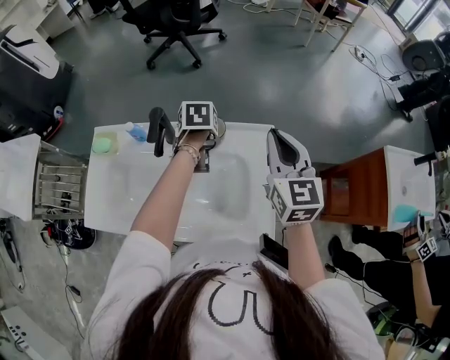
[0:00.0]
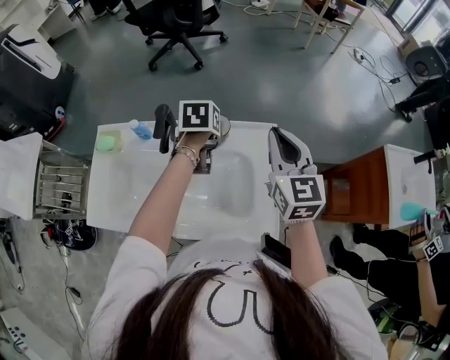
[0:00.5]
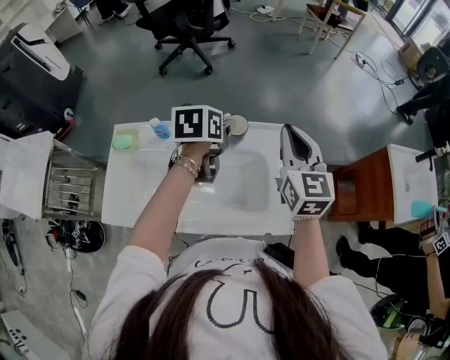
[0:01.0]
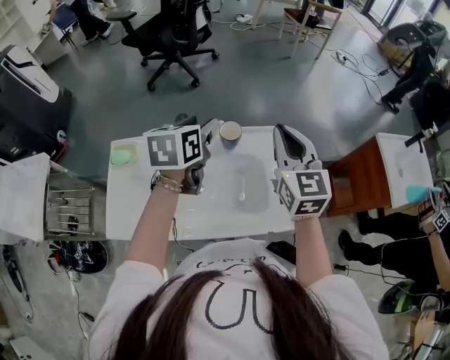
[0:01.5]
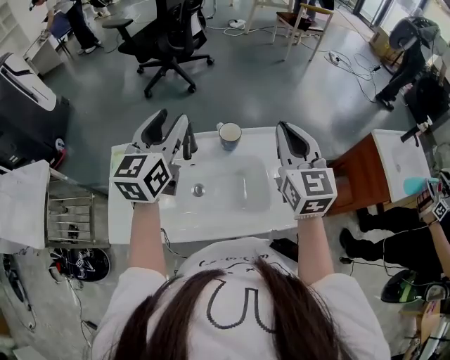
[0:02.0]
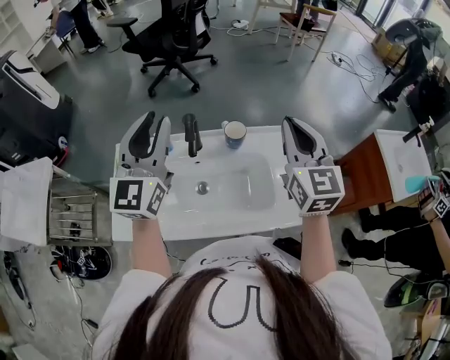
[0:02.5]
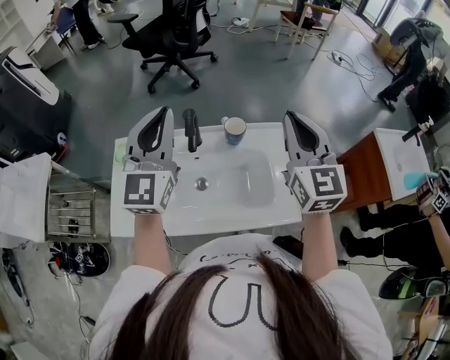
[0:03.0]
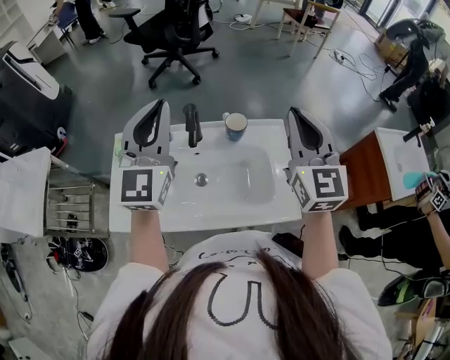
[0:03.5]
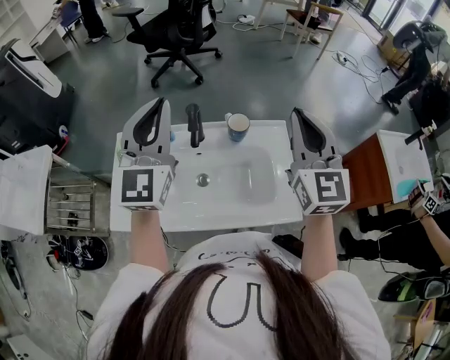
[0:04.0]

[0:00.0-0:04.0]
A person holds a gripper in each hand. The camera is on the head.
0:00.0 to 0:02.0: The right gripper shifts approximately 10 cm upward and backward, while the left gripper travels upward by approximately 30 cm, and points its fingers approximately 60 degrees further upward.
0:02.0 to 0:04.0: The right gripper shifts by about 5 cm; the left gripper travels upward and backward by about 10 cm, changes its angle by approximately 30 degrees, and closes up.

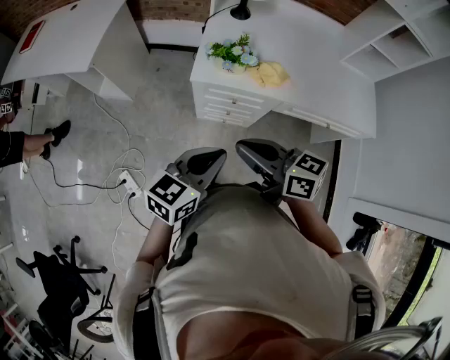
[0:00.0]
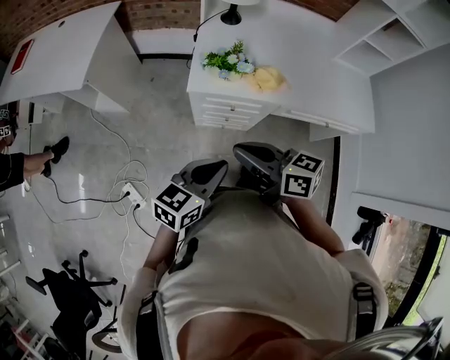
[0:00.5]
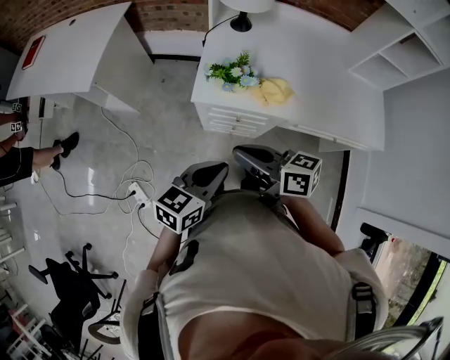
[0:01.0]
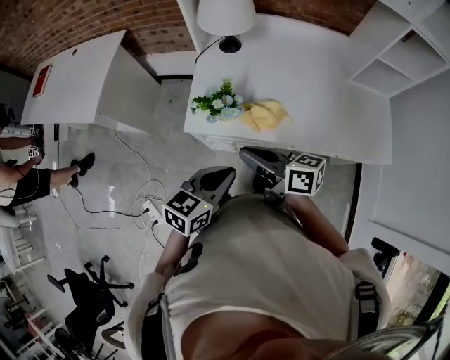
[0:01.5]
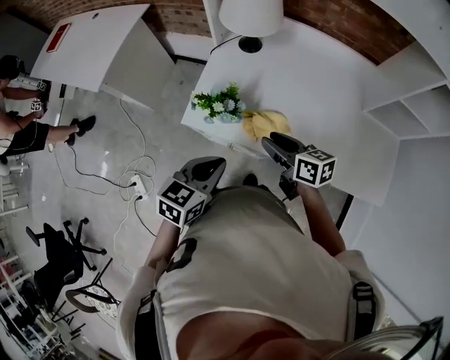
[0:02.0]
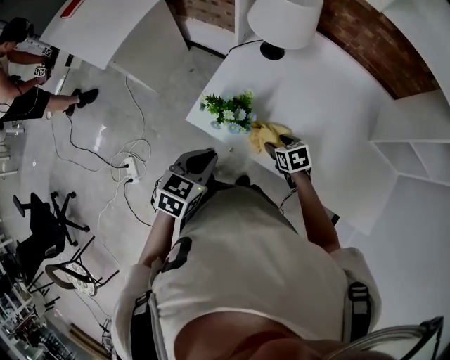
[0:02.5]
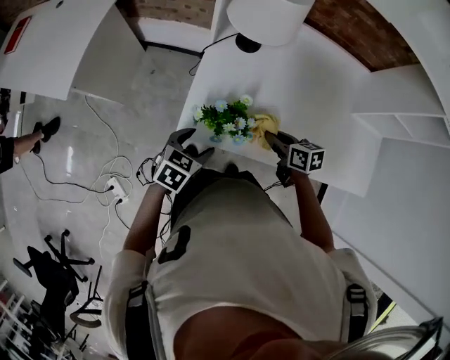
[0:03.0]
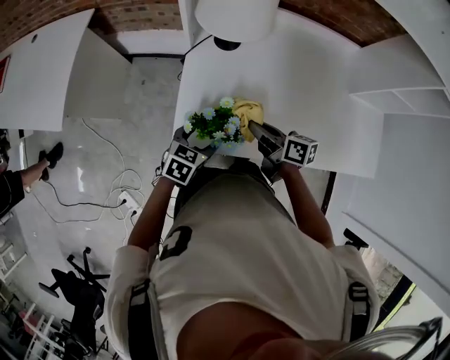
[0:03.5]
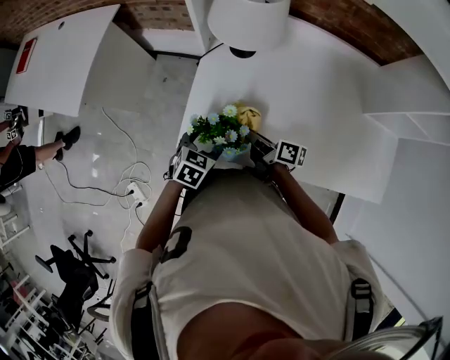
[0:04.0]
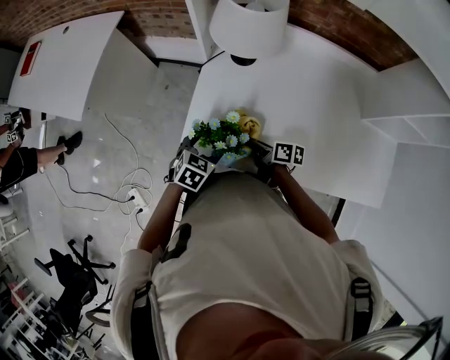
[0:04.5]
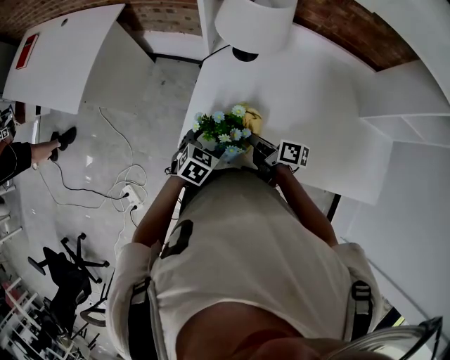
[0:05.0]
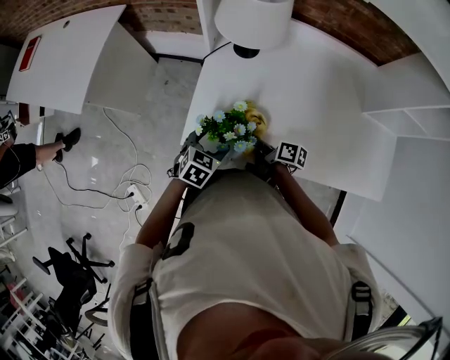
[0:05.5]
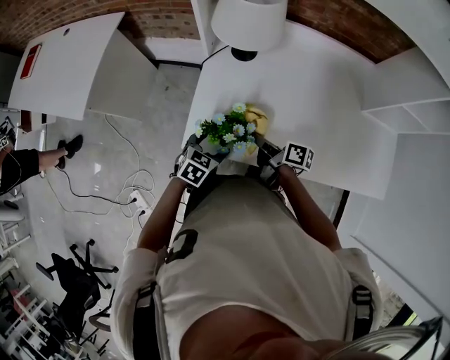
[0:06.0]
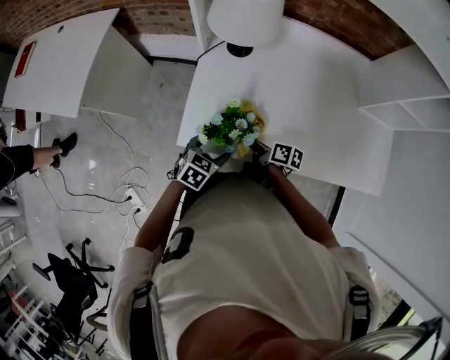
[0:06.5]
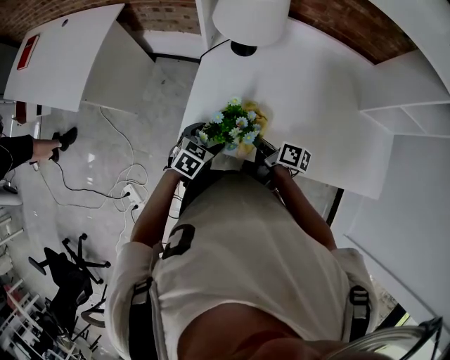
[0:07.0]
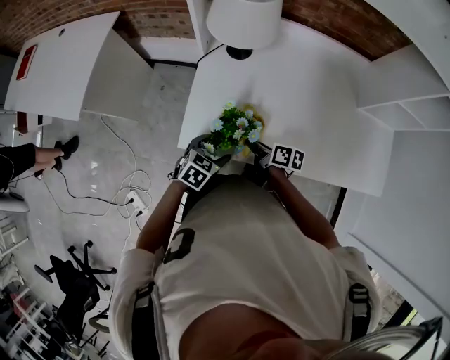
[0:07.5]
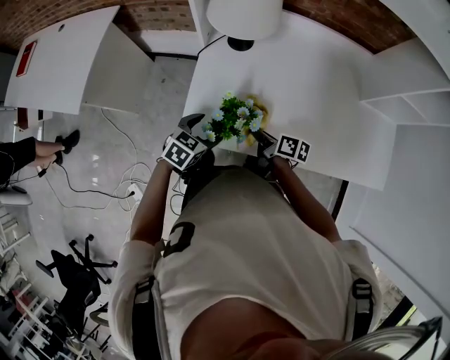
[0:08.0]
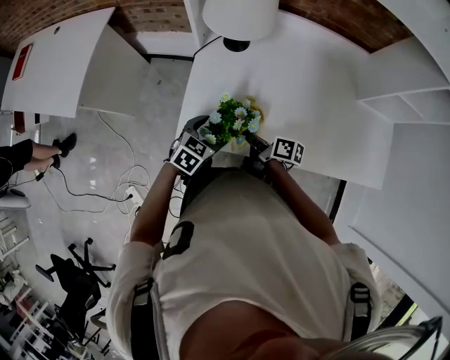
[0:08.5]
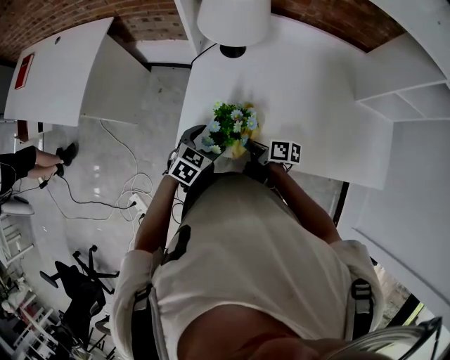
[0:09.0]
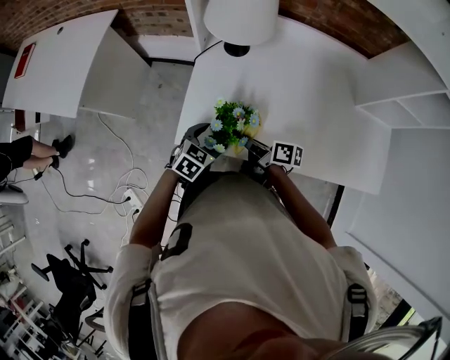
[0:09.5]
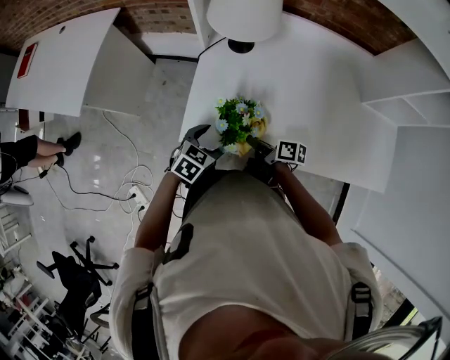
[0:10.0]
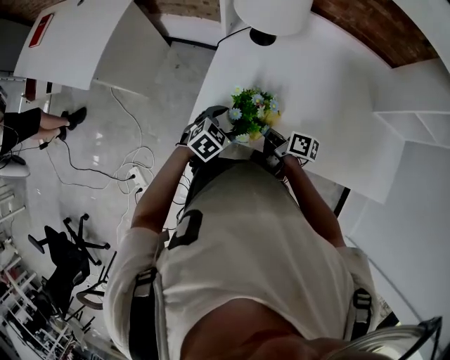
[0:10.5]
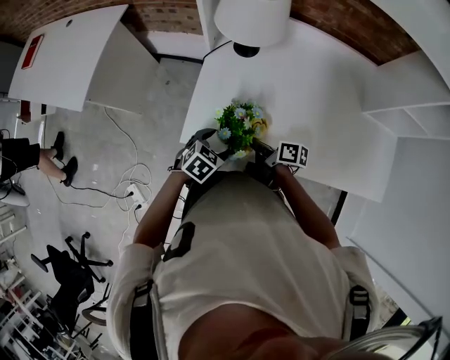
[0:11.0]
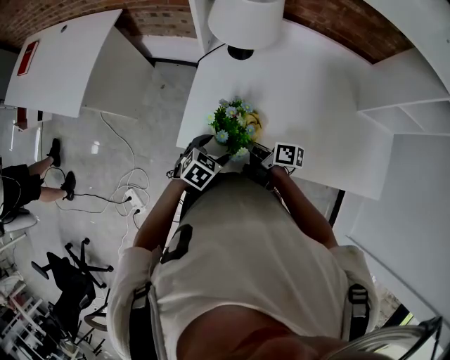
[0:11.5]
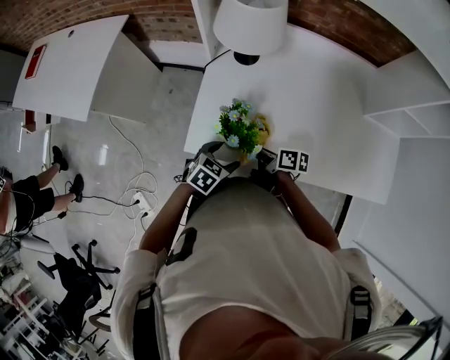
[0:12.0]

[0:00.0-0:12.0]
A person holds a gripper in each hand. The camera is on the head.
0:00.0 to 0:02.0: The right gripper goes about 35 cm forward, to the right and downward, and opens; the left gripper travels forward and to the right by approximately 25 cm, and rotates approximately 20 degrees.
0:02.0 to 0:04.0: The left gripper moves downward and forward, roughly 25 cm, changes its angle by approximately 20 degrees, and opens its fingers, while the right gripper moves up and down over some 15 cm, changing direction 2 times, turns by roughly 40 degrees, and opens, then closes again.
0:04.0 to 0:06.0: The right gripper goes up and down, approximately 5 cm each way, reversing 3 times.
0:06.0 to 0:08.0: There are only small adjustments of the grippers.
0:08.0 to 0:10.0: The grippers move only a little.

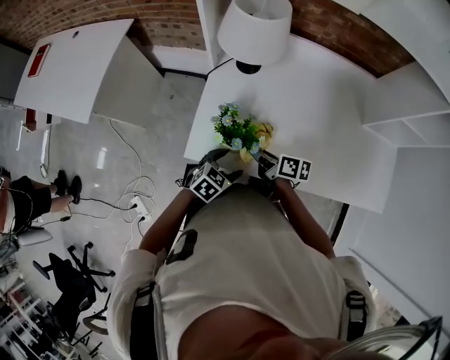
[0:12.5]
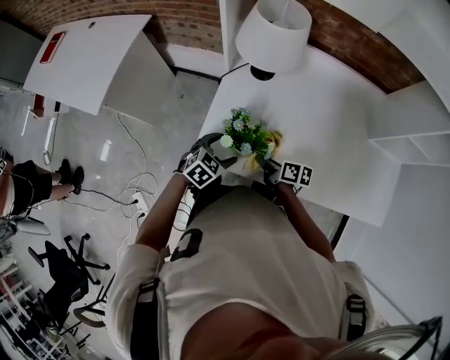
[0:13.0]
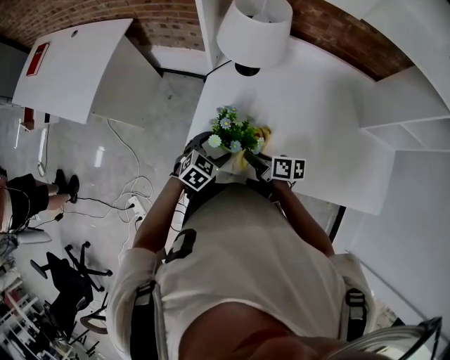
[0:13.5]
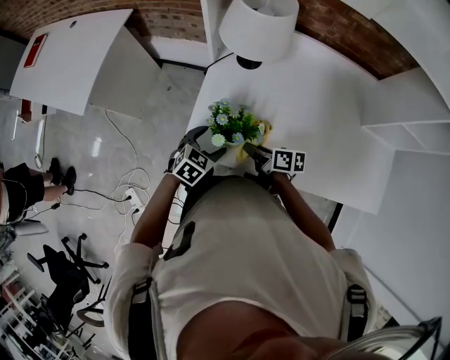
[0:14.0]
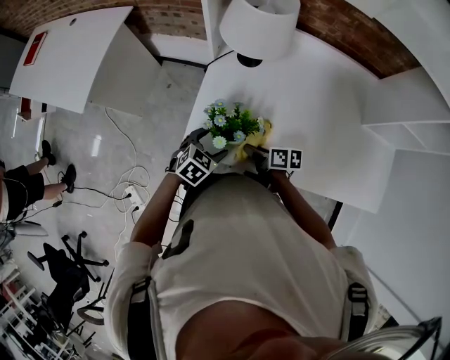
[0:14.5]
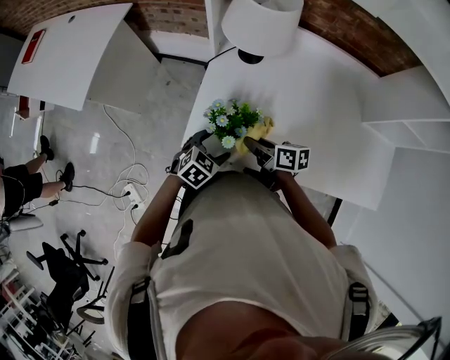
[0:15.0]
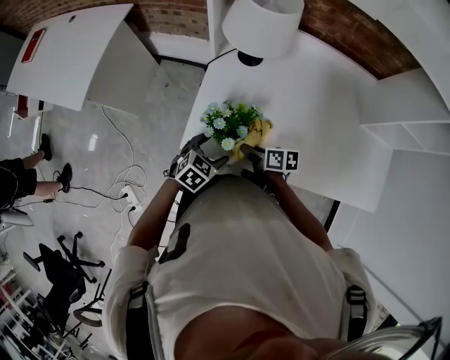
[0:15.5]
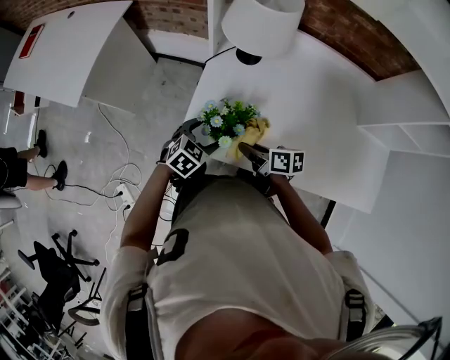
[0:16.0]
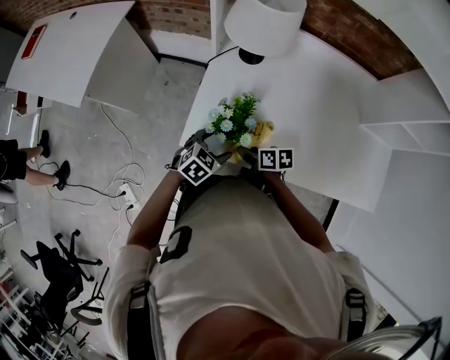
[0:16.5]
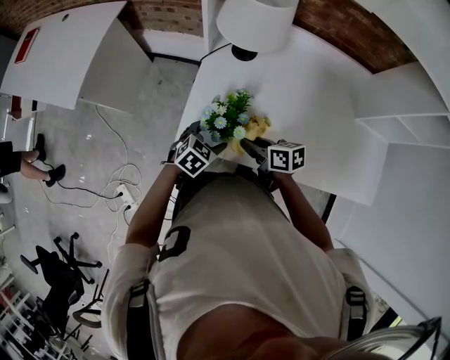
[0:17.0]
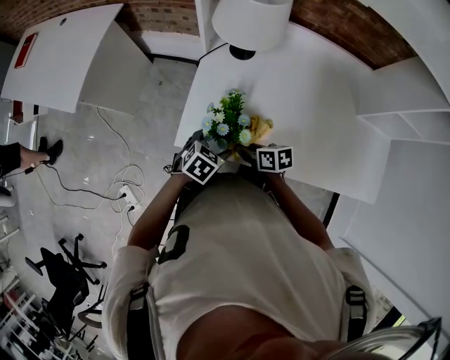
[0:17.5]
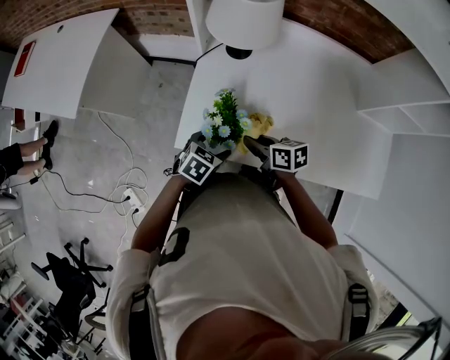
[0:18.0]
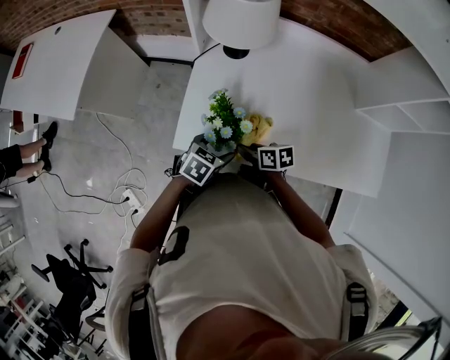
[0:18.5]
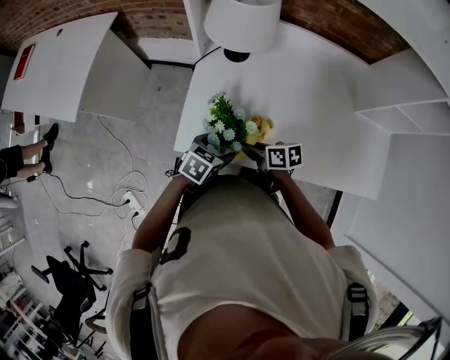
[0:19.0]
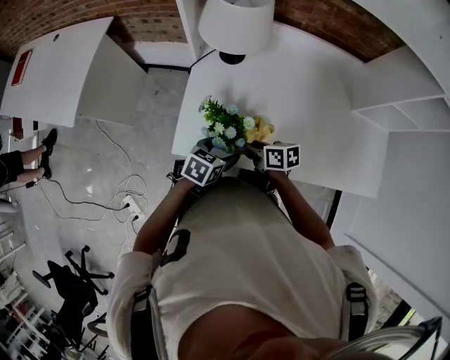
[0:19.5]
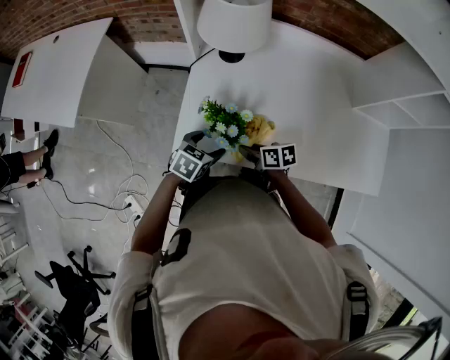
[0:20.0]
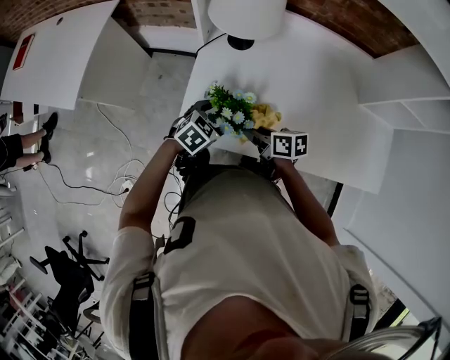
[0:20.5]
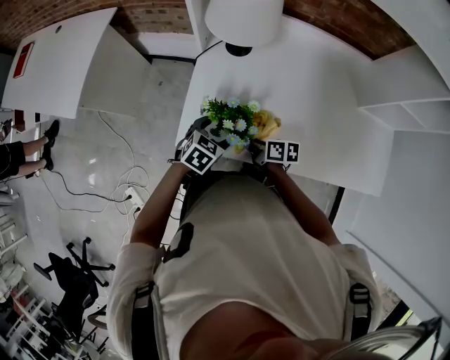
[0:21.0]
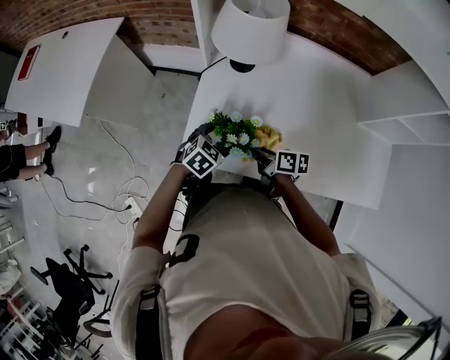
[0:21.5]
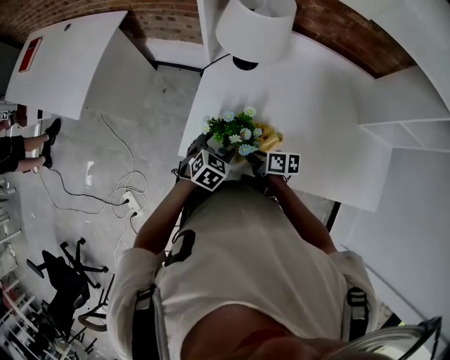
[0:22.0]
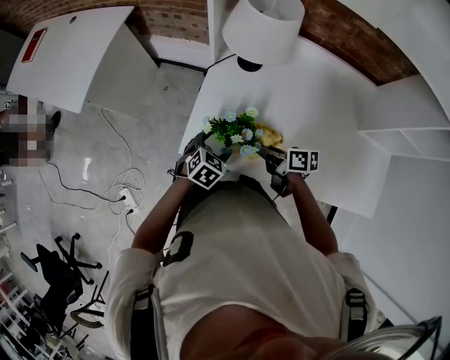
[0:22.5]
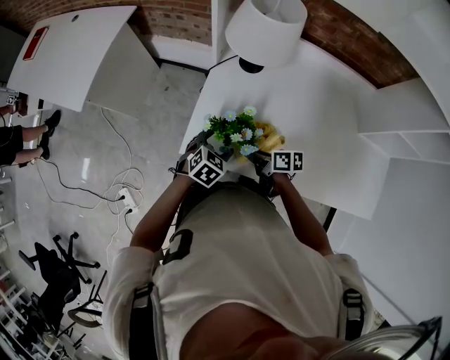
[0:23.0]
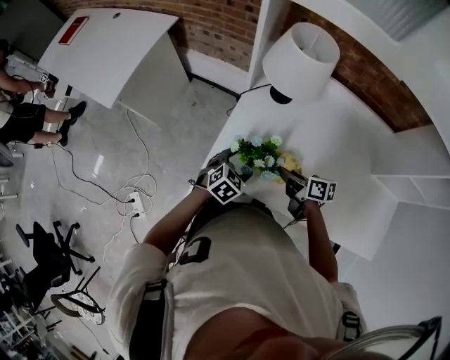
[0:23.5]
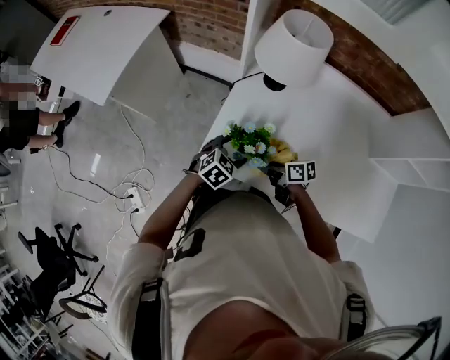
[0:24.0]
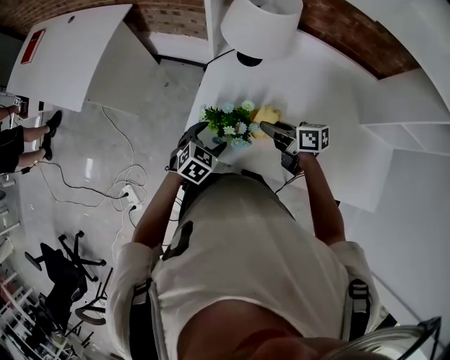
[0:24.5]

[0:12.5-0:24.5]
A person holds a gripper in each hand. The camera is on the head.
0:12.5 to 0:14.5: The right gripper goes approximately 5 cm downward; the left gripper is displaced forward by approximately 5 cm.
0:14.5 to 0:16.5: The right gripper swings up and down, about 10 cm each way, with 3 reversals.
0:16.5 to 0:18.5: The right gripper swings up and down, some 10 cm each way, with 3 reversals.
0:18.5 to 0:20.5: The right gripper changes place by roughly 5 cm. The left gripper shifts approximately 5 cm forward.
0:20.5 to 0:22.5: The grippers move only a little.
0:22.5 to 0:24.5: The right gripper is displaced forward by roughly 5 cm.
